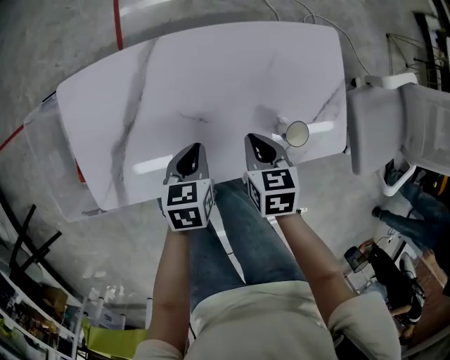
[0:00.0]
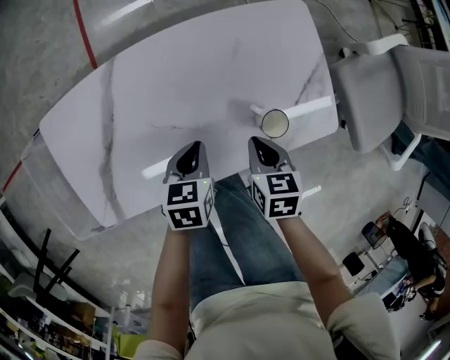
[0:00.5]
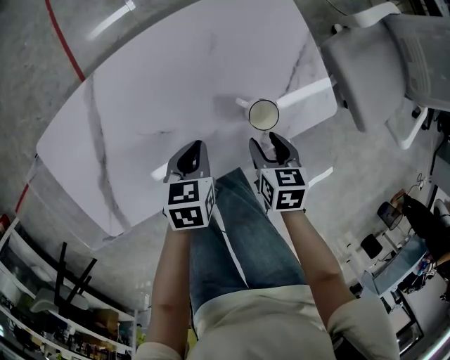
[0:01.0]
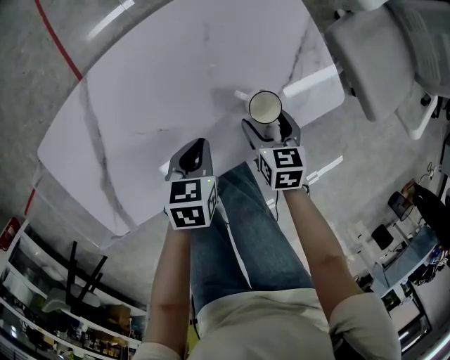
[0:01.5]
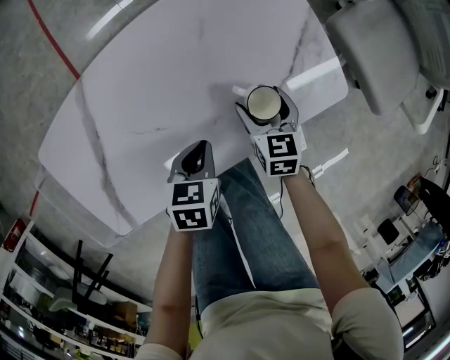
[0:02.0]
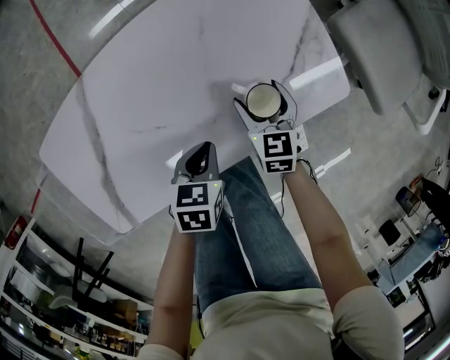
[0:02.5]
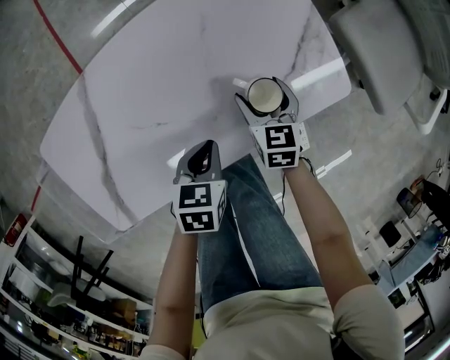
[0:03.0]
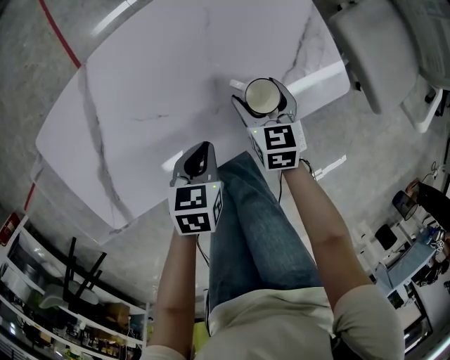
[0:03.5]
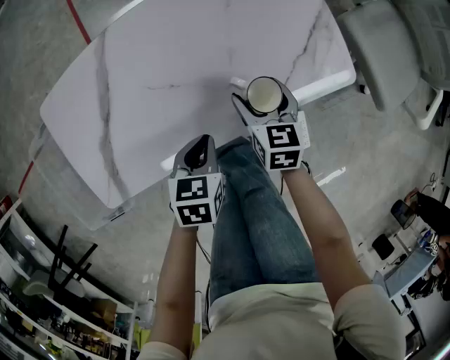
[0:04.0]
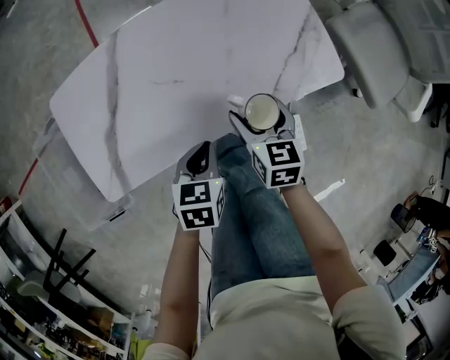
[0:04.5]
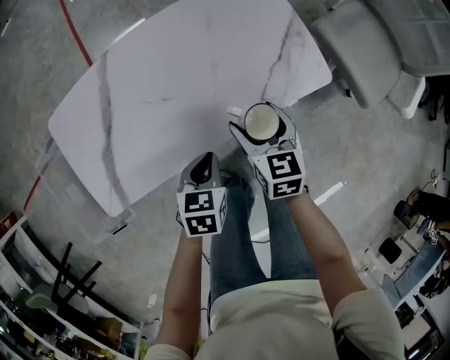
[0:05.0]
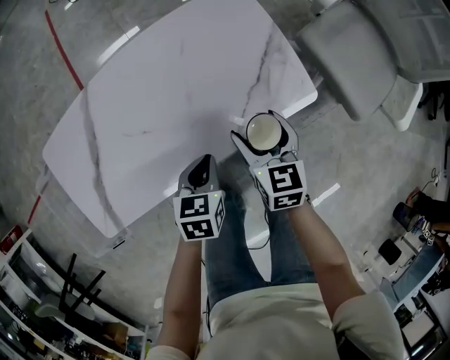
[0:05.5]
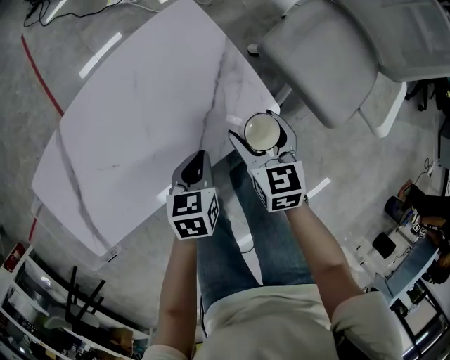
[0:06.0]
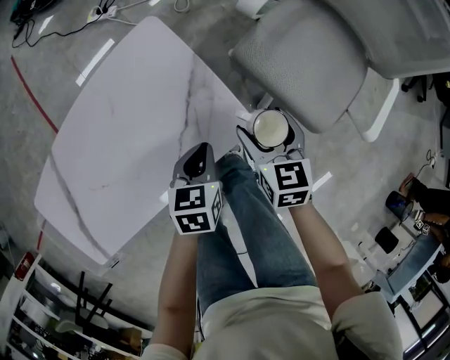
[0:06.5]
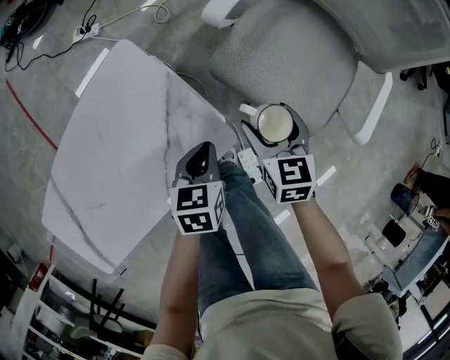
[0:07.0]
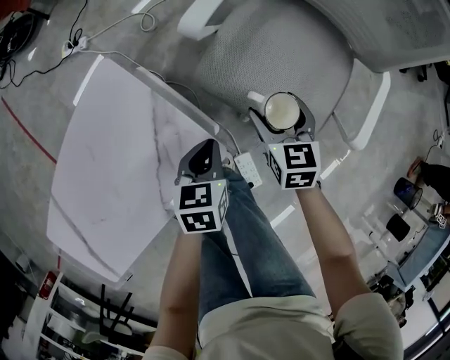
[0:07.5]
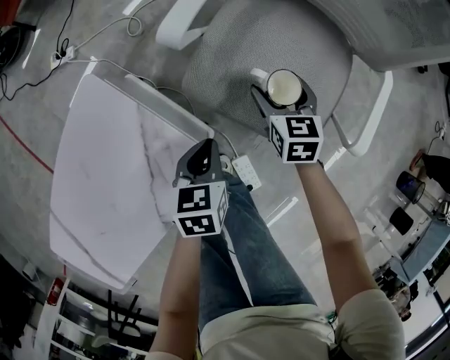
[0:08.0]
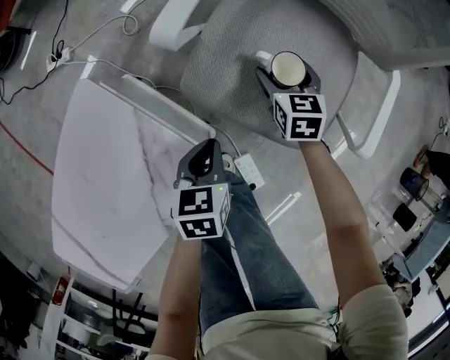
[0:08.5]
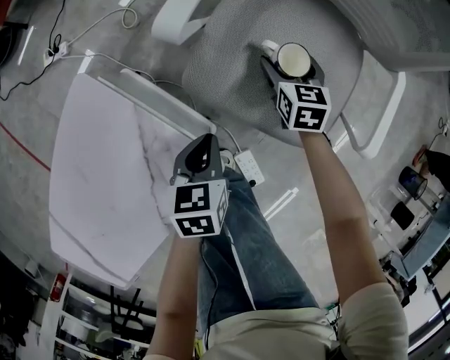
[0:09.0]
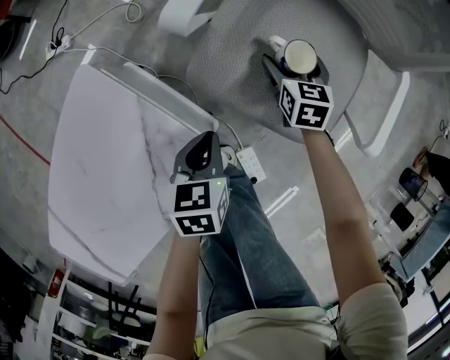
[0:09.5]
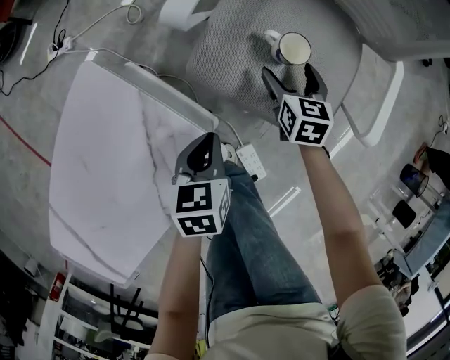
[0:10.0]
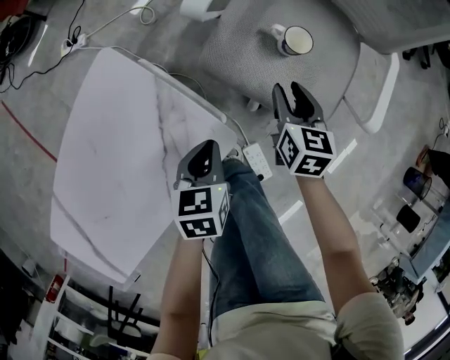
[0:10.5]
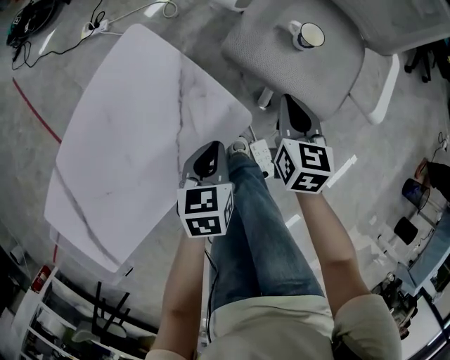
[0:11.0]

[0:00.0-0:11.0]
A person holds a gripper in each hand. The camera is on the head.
0.0 to 2.0 s: The left gripper ends up about 15 cm from where it was, and turns by roughly 30 degrees; the right gripper changes place by roughly 20 cm, swivels roughly 20 degrees, and opens.
2.0 to 3.5 s: There are only small adjustments of the grippers.
3.5 to 5.5 s: The right gripper heads upward and to the right, covering approximately 10 cm. Meanwhile the left gripper is displaced to the right by approximately 10 cm.
5.5 to 7.5 s: Both grippers are carried to the right and forward, approximately 40 cm. The right gripper changes its angle by about 20 degrees.
7.5 to 9.0 s: The left gripper changes place by some 5 cm; the right gripper is displaced forward and downward by about 15 cm.
9.0 to 11.0 s: The right gripper heads backward and upward, covering about 30 cm, and closes; the left gripper is displaced backward and upward by some 20 cm.

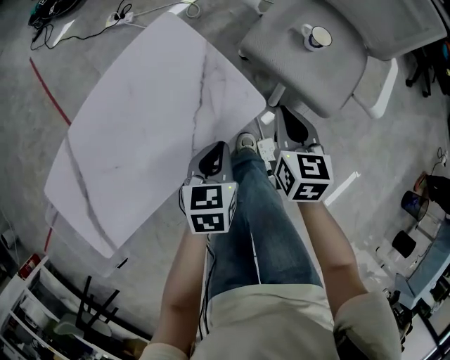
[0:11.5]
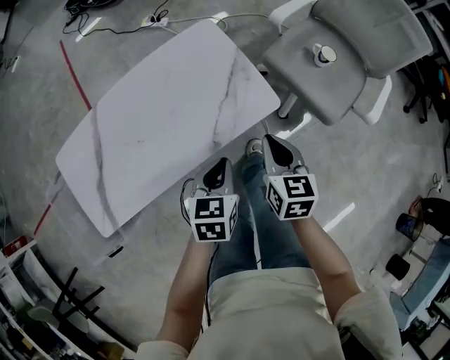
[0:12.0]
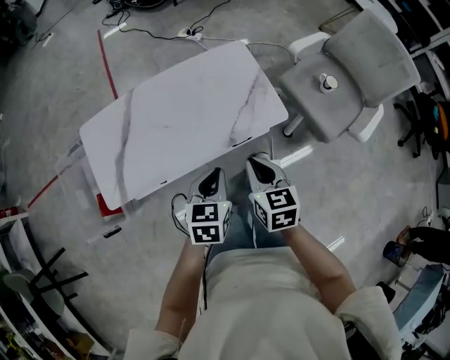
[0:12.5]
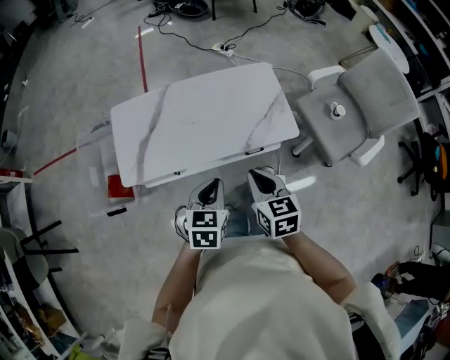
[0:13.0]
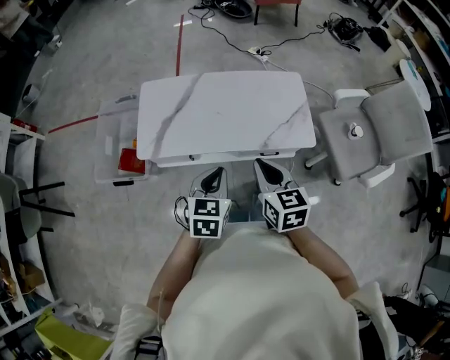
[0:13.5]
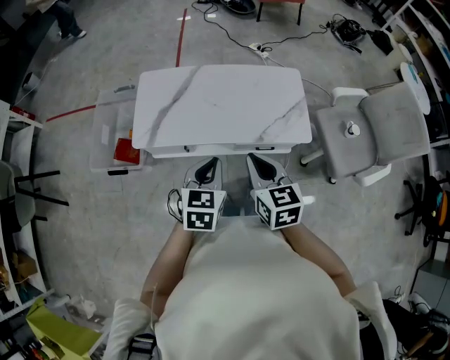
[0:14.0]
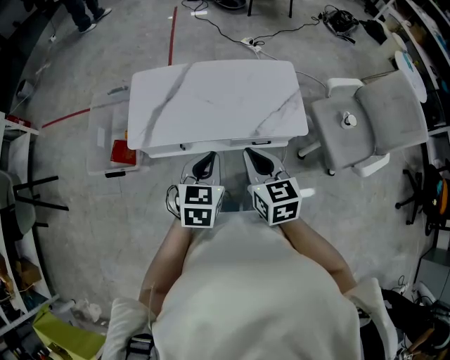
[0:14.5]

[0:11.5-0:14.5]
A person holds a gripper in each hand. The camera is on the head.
11.5 to 13.0 s: The right gripper shifts by approximately 40 cm, and rotates roughly 40 degrees; the left gripper ends up roughly 40 cm from where it was, and swivels about 20 degrees.
13.0 to 14.5 s: The grippers both shift upward by about 5 cm.

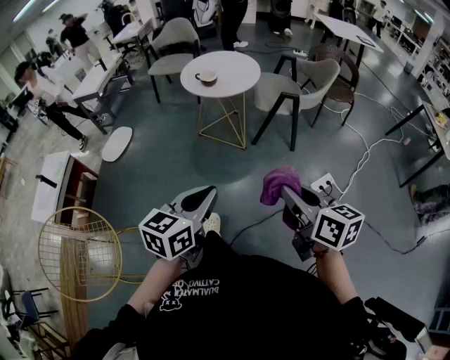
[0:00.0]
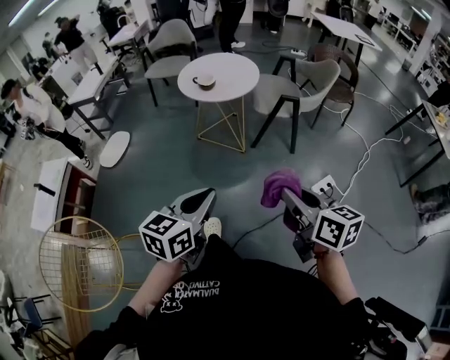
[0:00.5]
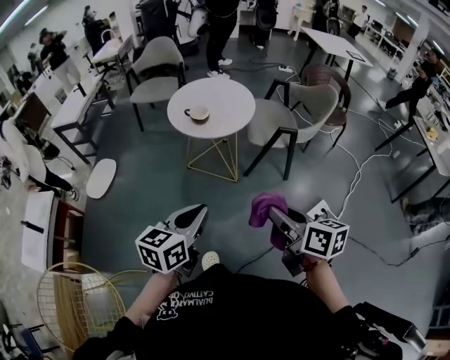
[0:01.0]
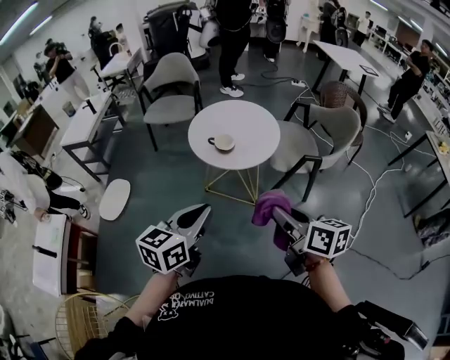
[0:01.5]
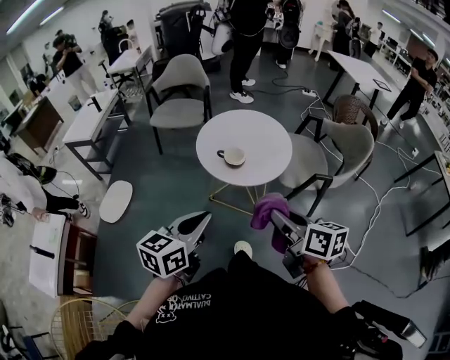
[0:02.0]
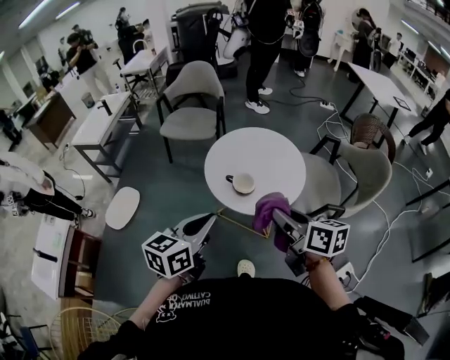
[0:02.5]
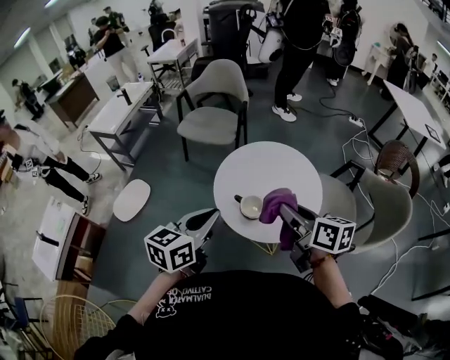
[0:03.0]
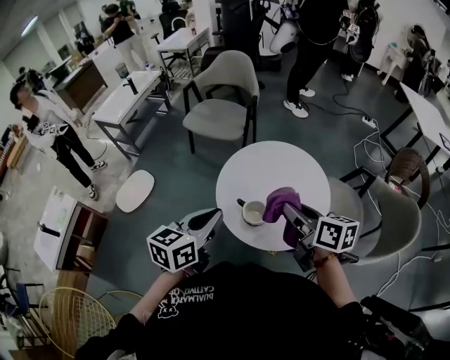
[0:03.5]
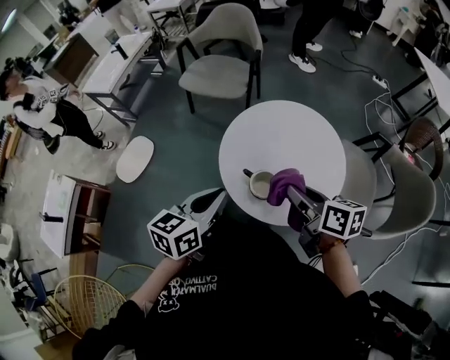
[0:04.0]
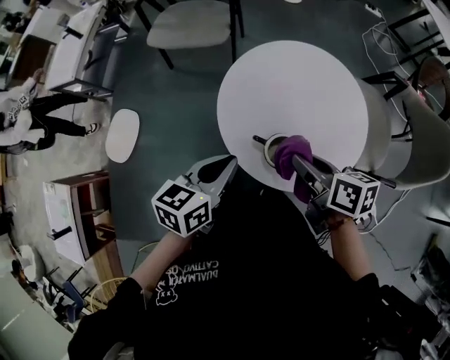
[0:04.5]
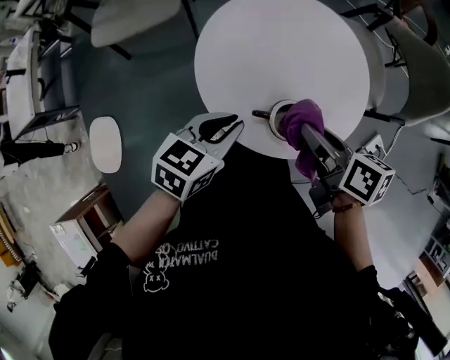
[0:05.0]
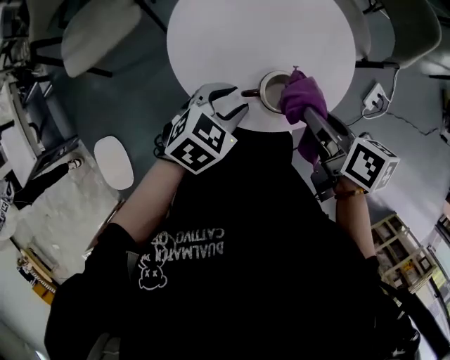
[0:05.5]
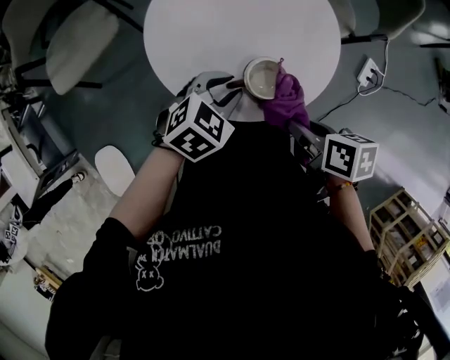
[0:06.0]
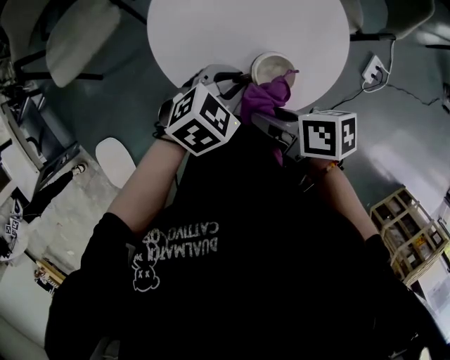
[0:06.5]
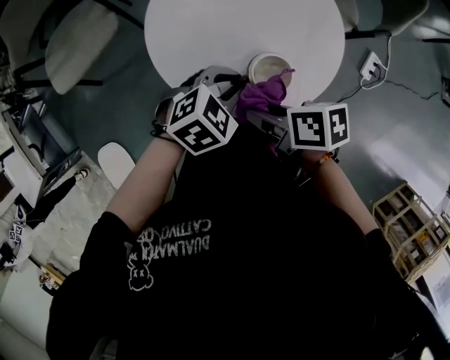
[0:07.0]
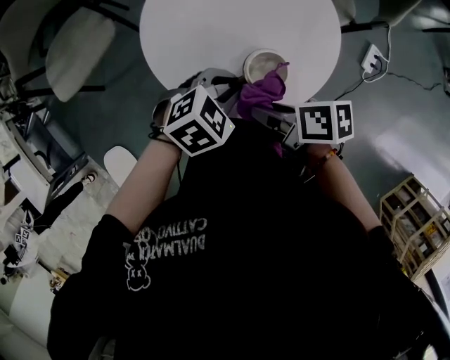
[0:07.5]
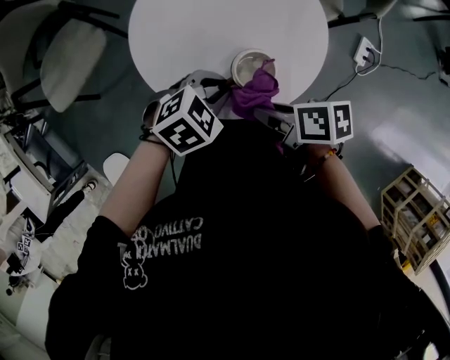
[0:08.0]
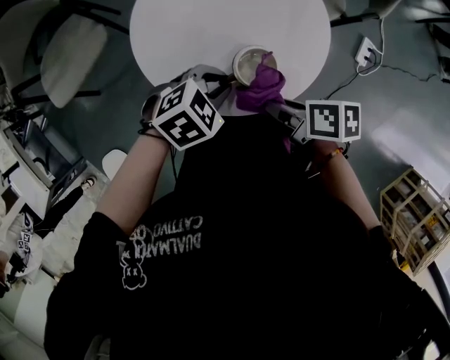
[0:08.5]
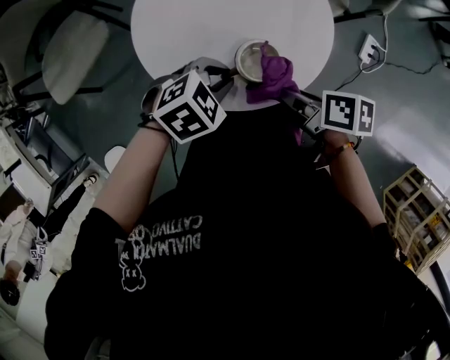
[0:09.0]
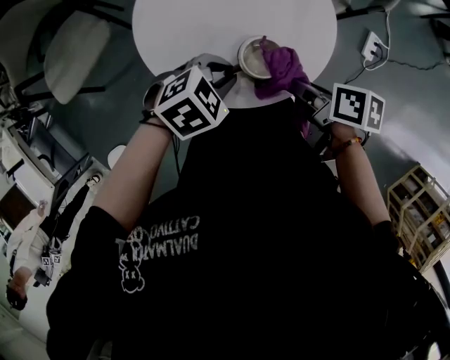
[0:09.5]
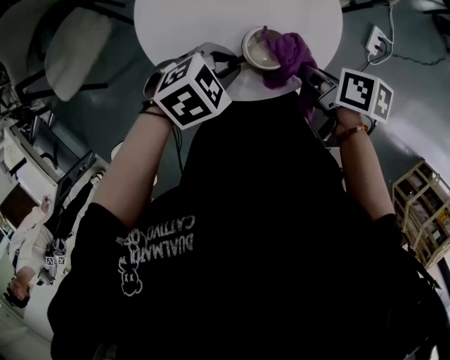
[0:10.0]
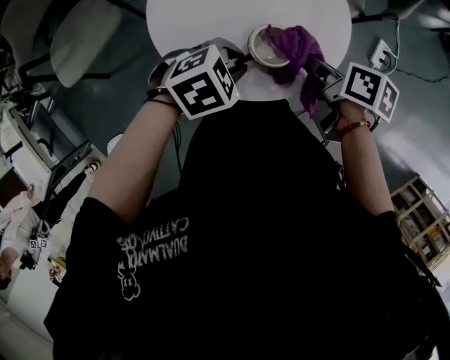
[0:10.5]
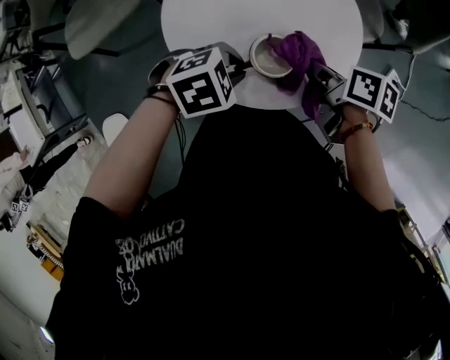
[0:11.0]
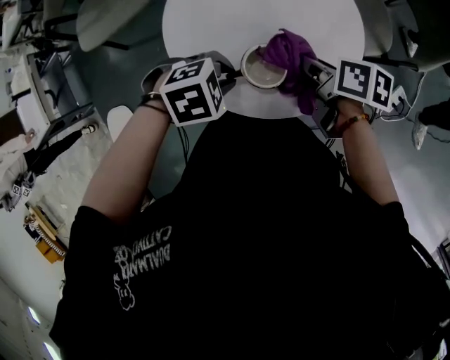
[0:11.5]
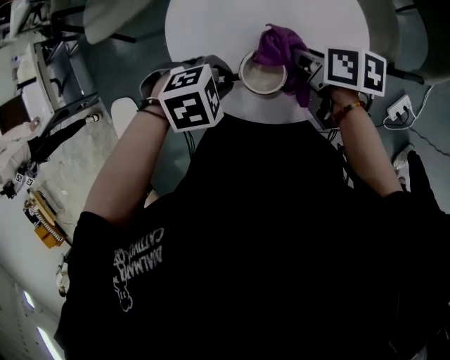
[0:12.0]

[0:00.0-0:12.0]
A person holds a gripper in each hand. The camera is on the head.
0.0 to 2.0 s: The pair of grippers is taken forward and to the left, roughly 50 cm.
2.0 to 4.0 s: The two grippers go roughly 35 cm forward. The right gripper changes its angle by some 20 degrees.
4.0 to 6.0 s: Both grippers move downward, roughly 20 cm. The right gripper rotates roughly 50 degrees, while the left gripper rotates about 90 degrees, and opens up.
8.0 to 10.0 s: The right gripper moves approximately 10 cm, and turns by about 20 degrees.
10.0 to 12.0 s: The right gripper shifts by roughly 15 cm, and changes its angle by about 30 degrees.

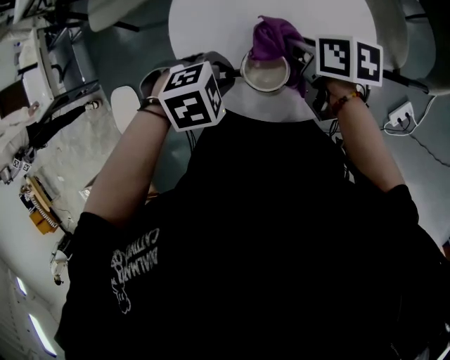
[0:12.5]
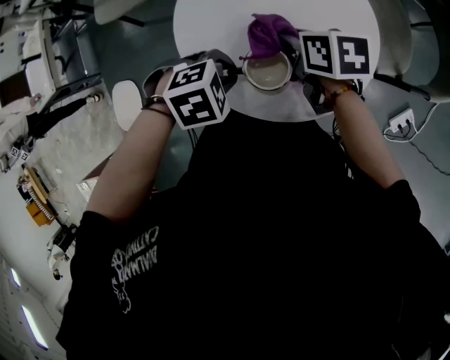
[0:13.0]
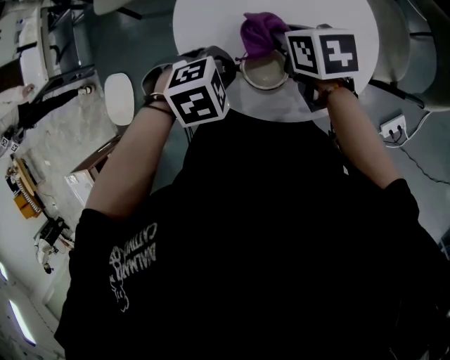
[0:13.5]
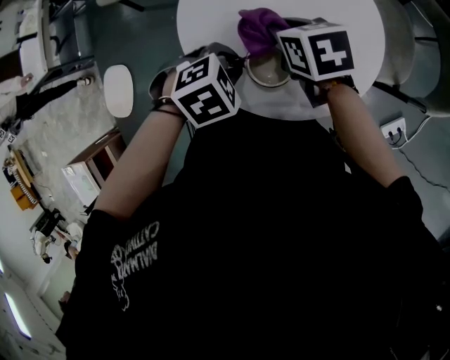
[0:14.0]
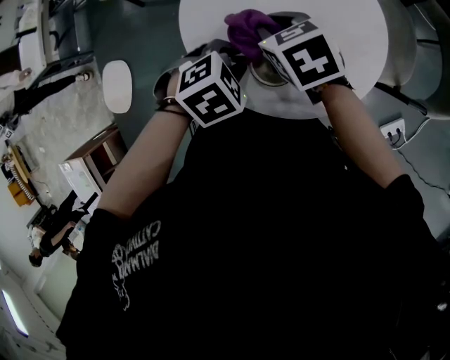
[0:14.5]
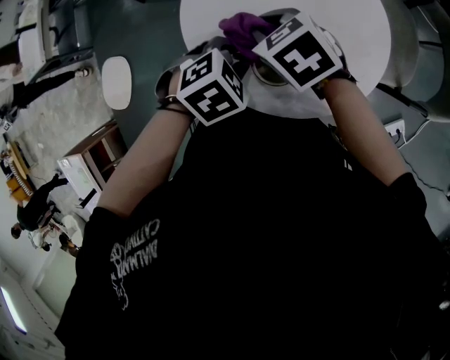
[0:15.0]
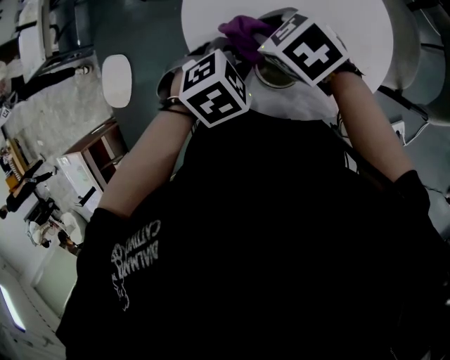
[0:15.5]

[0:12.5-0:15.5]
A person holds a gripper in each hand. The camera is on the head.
12.5 to 14.0 s: The right gripper ends up some 5 cm from where it was, and changes its angle by about 30 degrees; the left gripper rotates approximately 20 degrees.
14.0 to 15.5 s: The right gripper changes place by some 5 cm, and swivels approximately 30 degrees.
